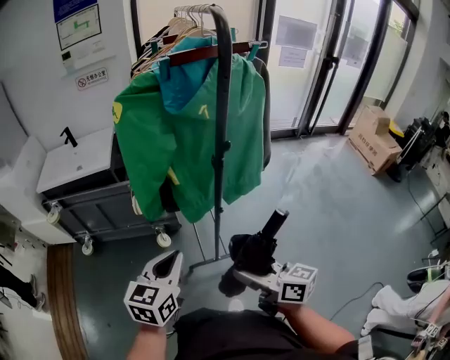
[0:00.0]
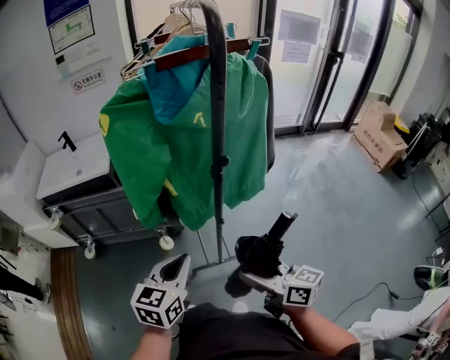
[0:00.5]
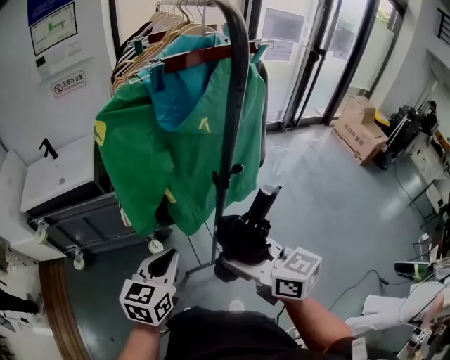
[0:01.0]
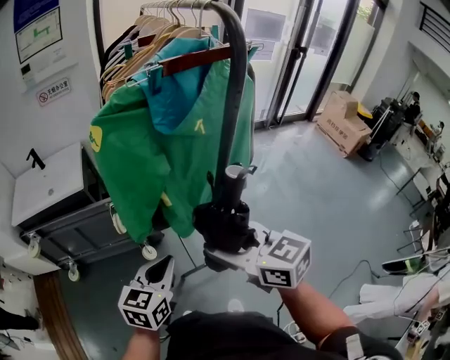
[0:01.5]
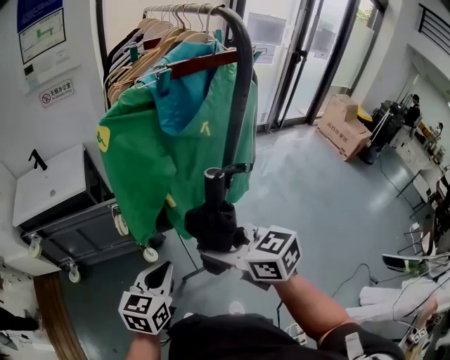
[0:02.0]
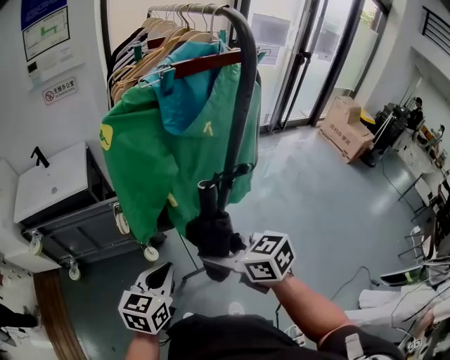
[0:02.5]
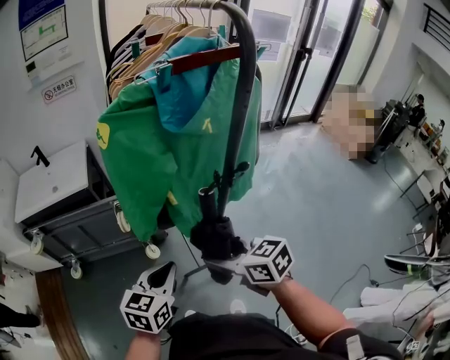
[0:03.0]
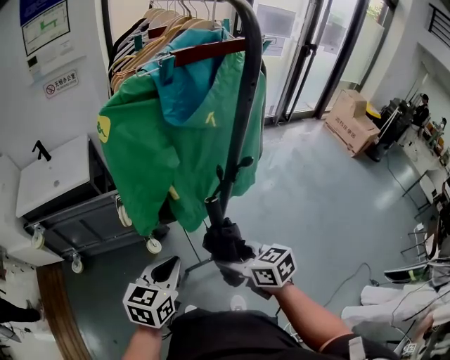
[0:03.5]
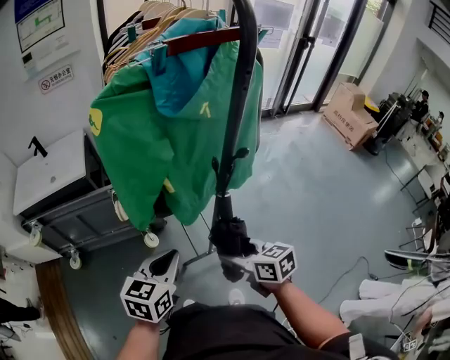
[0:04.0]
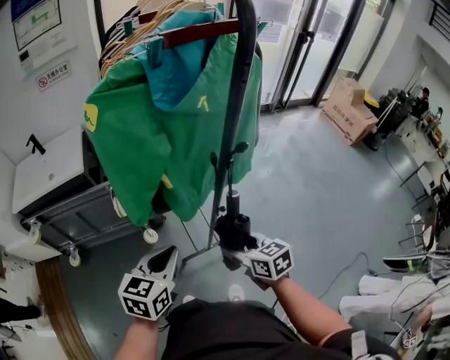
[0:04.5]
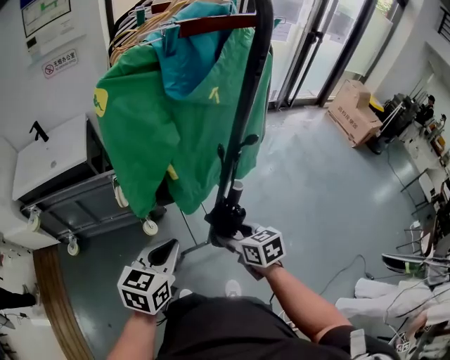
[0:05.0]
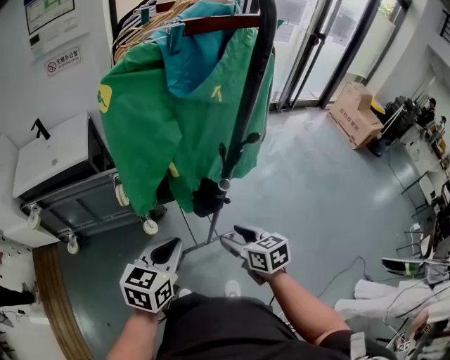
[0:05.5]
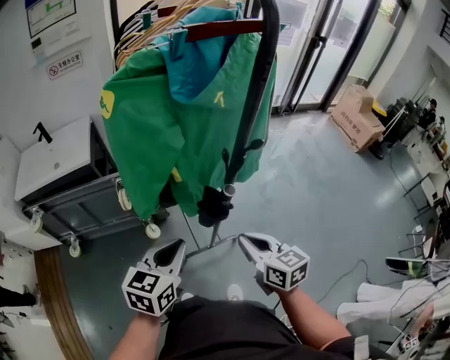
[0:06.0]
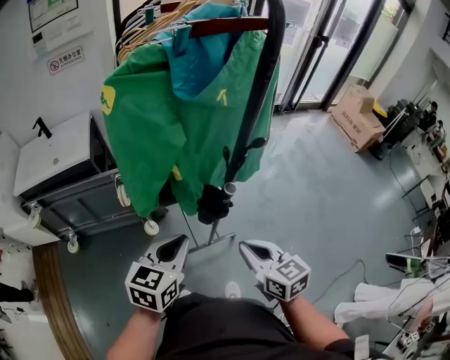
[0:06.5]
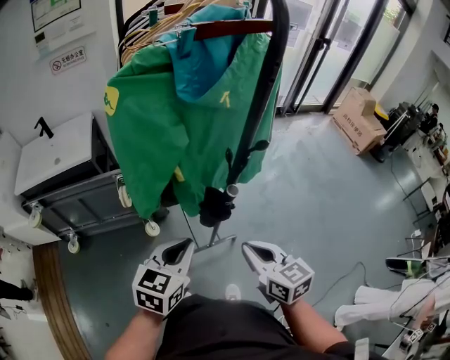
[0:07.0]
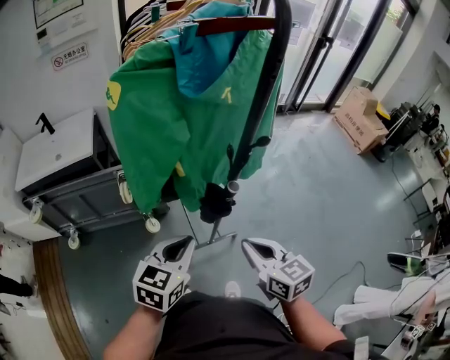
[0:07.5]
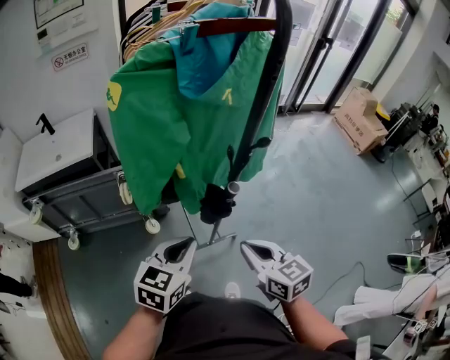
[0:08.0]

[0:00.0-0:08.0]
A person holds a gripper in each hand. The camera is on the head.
0:00.0 to 0:02.0: The left gripper shifts roughly 10 cm forward. Meanwhile the right gripper goes about 20 cm forward, to the left and upward, and changes its angle by about 30 degrees.
0:02.0 to 0:04.0: The right gripper heads downward, covering approximately 15 cm.
0:04.0 to 0:06.0: The right gripper closes its fingers.
0:06.0 to 0:08.0: The grippers stay close to where they were, moving slightly.

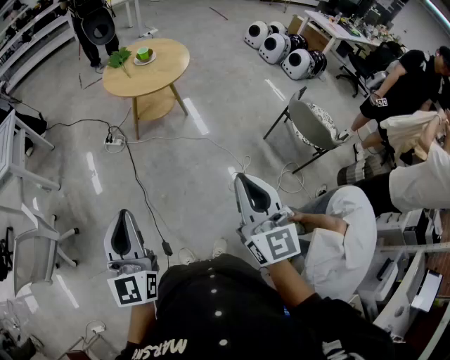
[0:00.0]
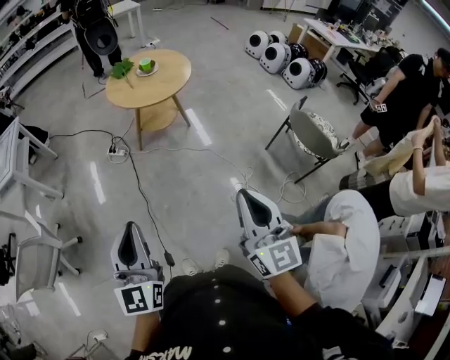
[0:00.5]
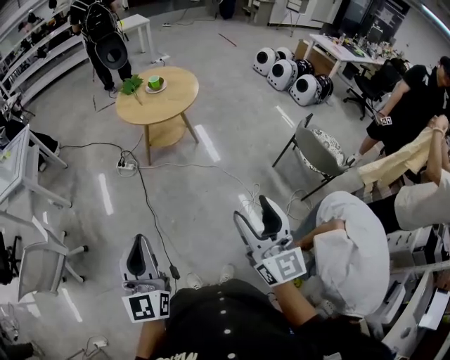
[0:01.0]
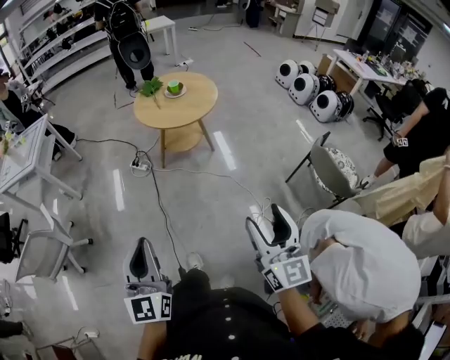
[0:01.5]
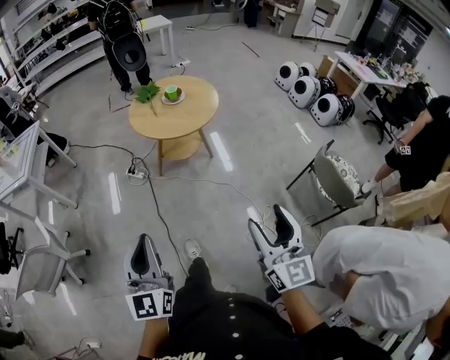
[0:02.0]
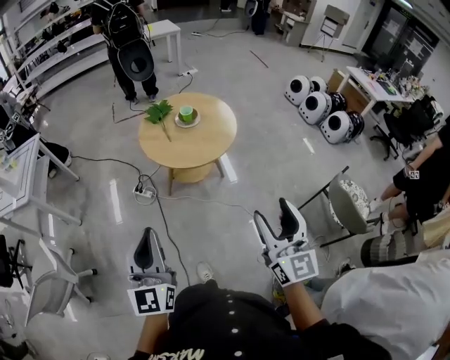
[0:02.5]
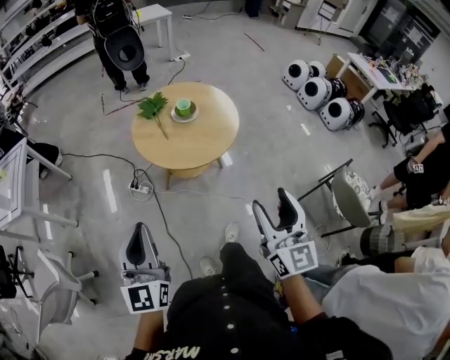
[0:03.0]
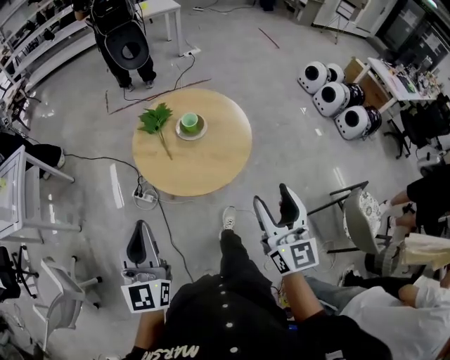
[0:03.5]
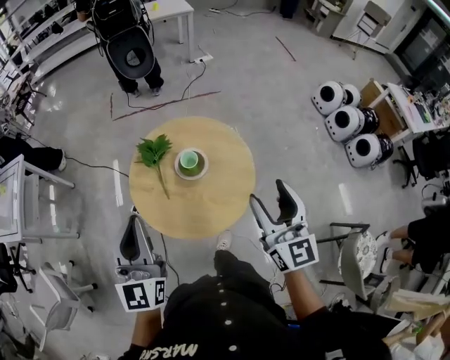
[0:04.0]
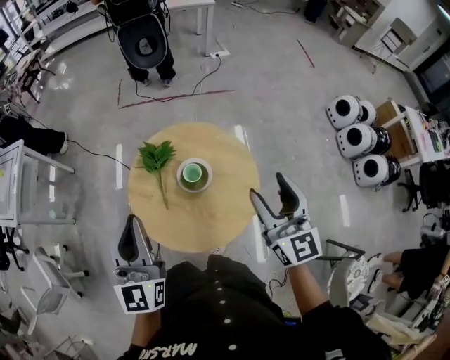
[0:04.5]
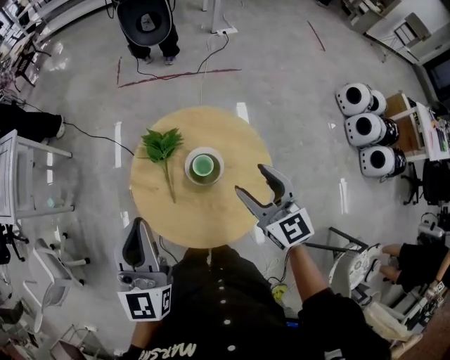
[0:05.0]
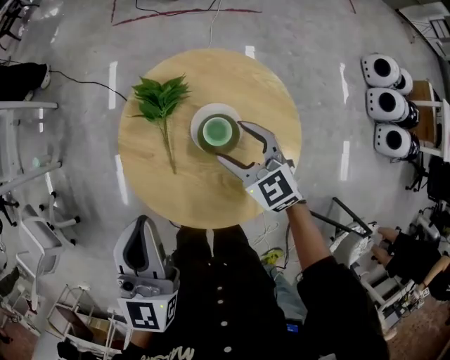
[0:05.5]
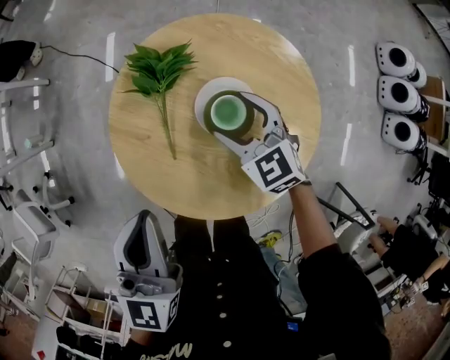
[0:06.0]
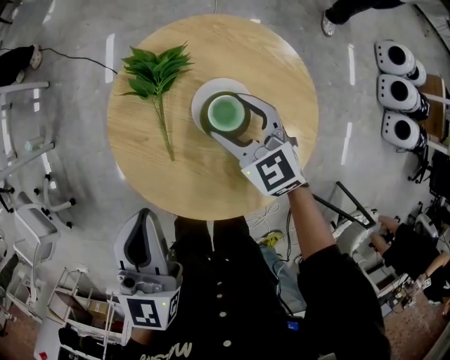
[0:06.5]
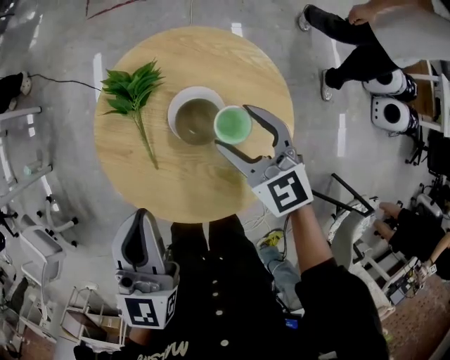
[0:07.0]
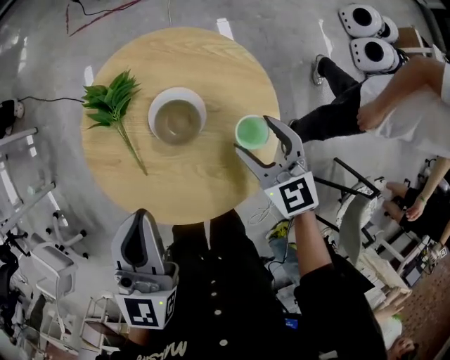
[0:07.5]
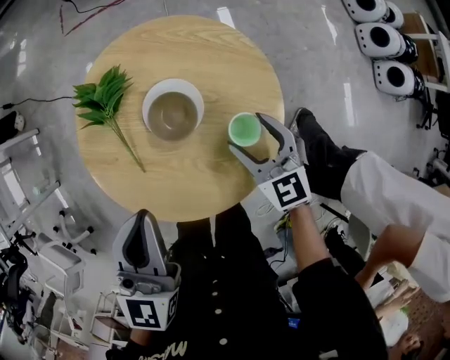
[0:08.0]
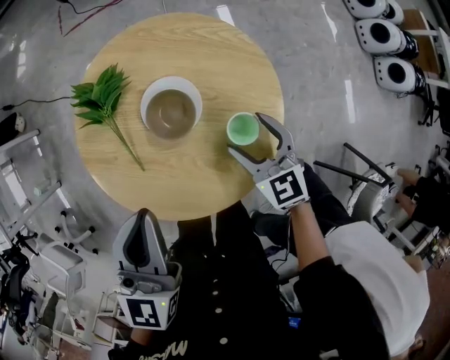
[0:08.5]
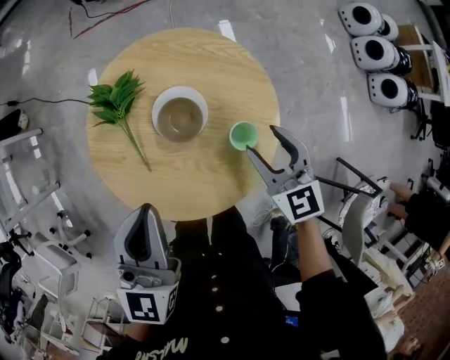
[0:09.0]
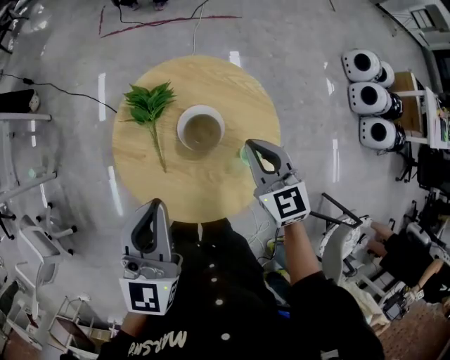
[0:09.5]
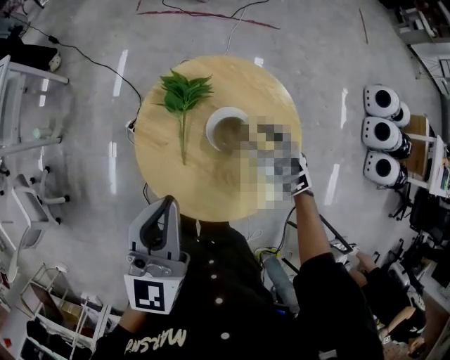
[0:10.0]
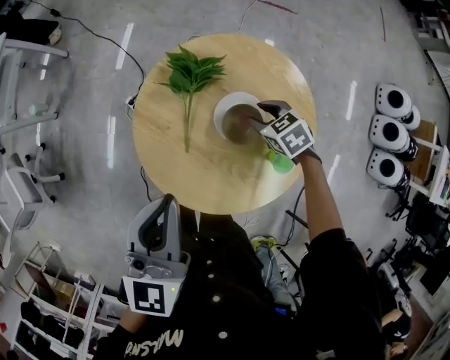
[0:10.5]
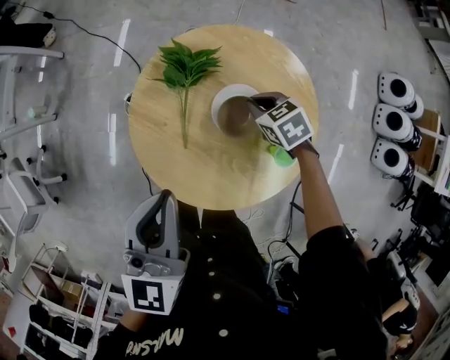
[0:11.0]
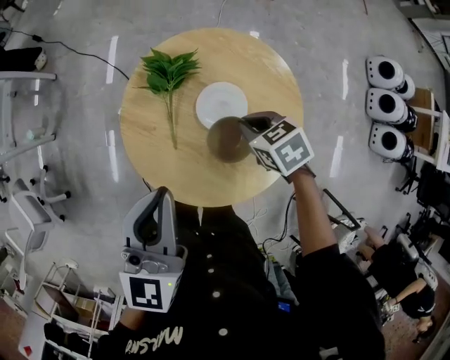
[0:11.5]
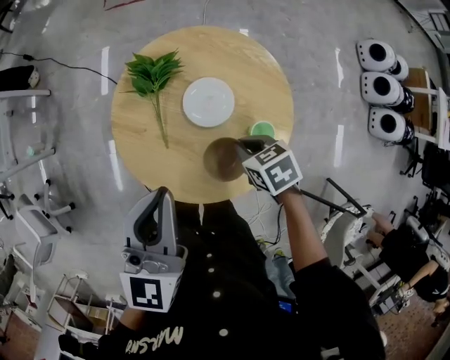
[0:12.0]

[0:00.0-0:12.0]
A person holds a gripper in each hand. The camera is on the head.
0:00.0 to 0:02.0: The left gripper heads forward, covering approximately 10 cm, while the right gripper is displaced forward and to the right by approximately 15 cm, and opens.
0:02.0 to 0:04.0: Both grippers are carried forward, approximately 70 cm.
0:04.0 to 0:06.0: The right gripper moves downward and forward, about 50 cm, and angles its fingers downward, by about 40 degrees. The left gripper travels downward and forward by about 25 cm, and turns by about 20 degrees.
0:06.0 to 0:08.0: The left gripper heads to the right, covering some 10 cm. Meanwhile the right gripper travels to the right and backward by about 15 cm, and turns by some 20 degrees.
0:08.0 to 0:10.0: The left gripper is displaced upward and to the left by some 15 cm. The right gripper moves to the left, forward and upward, some 15 cm, changes its angle by about 20 degrees, and closes its fingers.
0:10.0 to 0:12.0: The right gripper shifts roughly 10 cm backward and downward, swivels approximately 30 degrees, and closes.

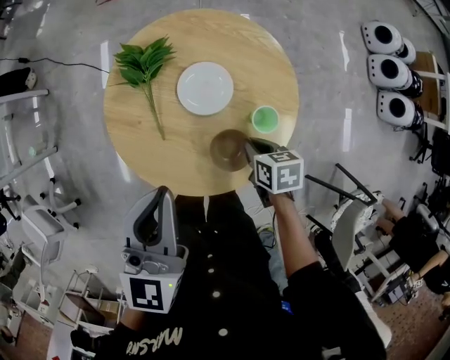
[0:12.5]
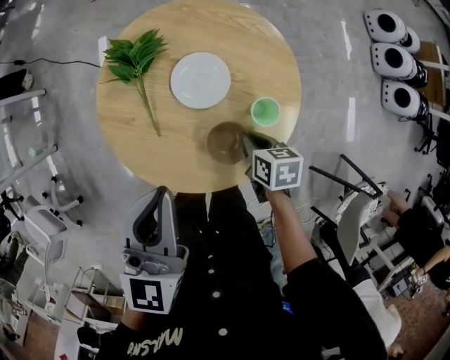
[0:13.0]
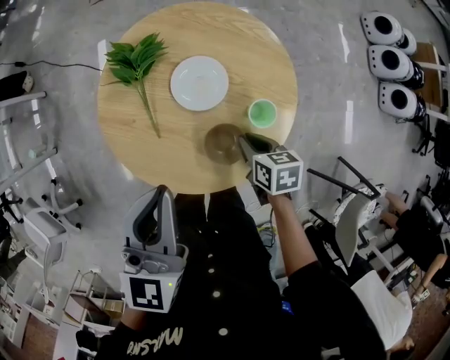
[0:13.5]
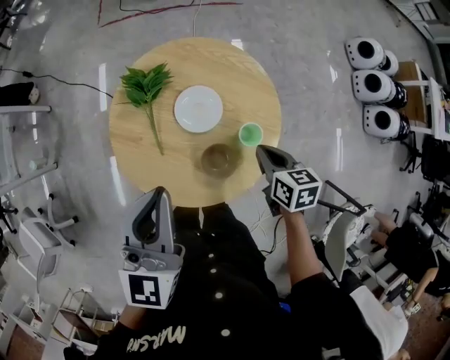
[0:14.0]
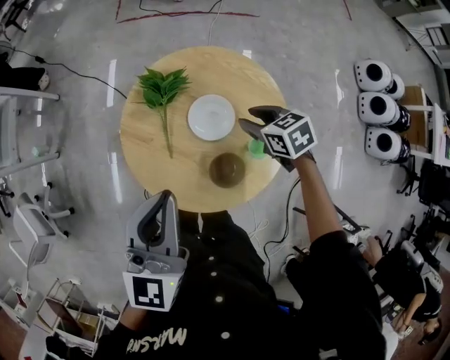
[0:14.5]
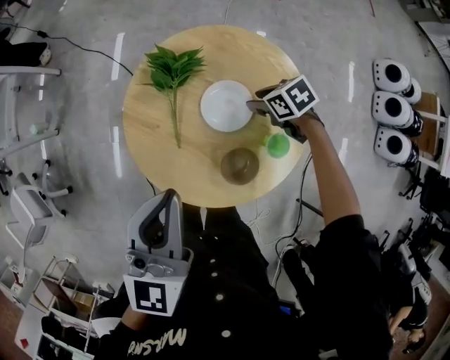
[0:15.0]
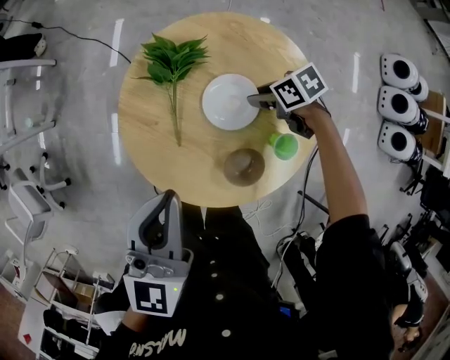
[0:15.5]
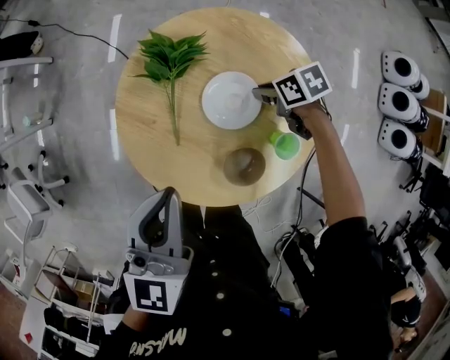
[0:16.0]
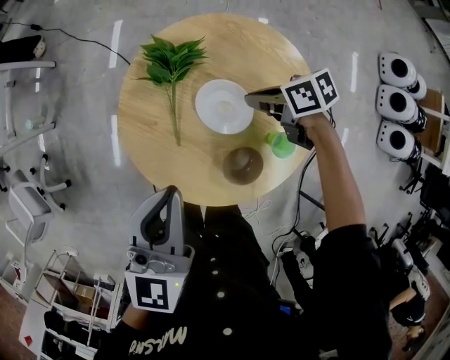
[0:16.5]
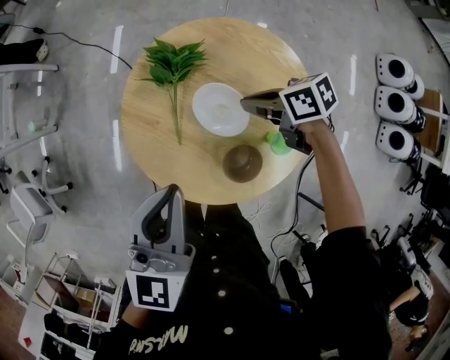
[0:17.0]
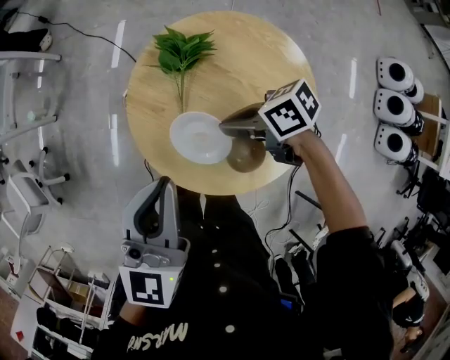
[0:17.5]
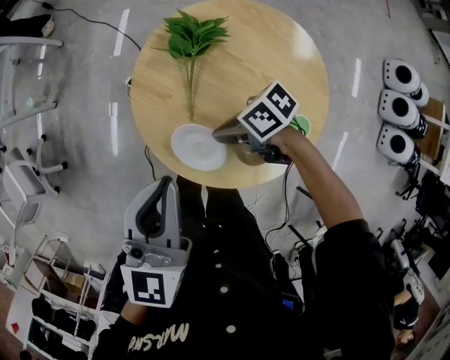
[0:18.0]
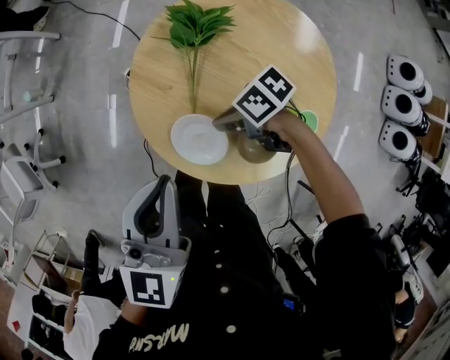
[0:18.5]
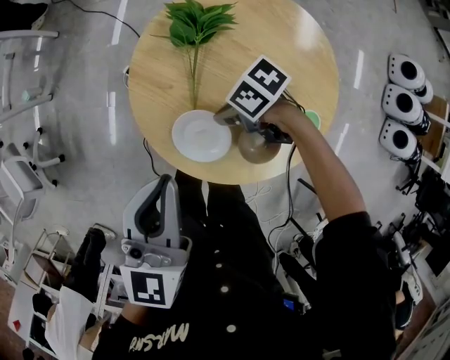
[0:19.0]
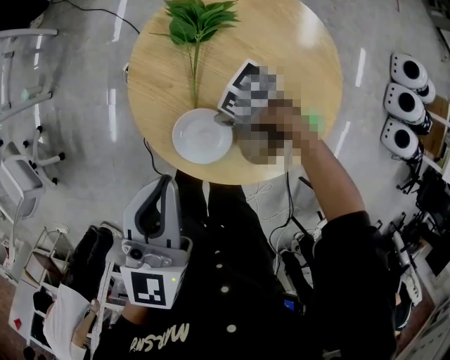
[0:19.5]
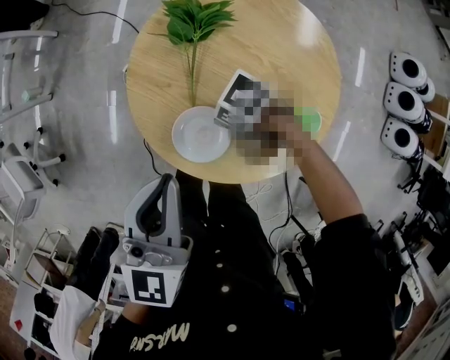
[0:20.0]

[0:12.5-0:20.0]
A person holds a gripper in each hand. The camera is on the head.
0:12.5 to 0:14.5: The left gripper is displaced upward by about 5 cm, while the right gripper goes about 20 cm forward and upward, turns by approximately 30 degrees, and opens its fingers.
0:14.5 to 0:16.5: The right gripper moves downward and forward, some 10 cm, rotates roughly 30 degrees, and closes; the left gripper moves downward, about 10 cm.
0:16.5 to 0:18.0: The right gripper ends up approximately 20 cm from where it was, and turns by about 20 degrees, while the left gripper moves some 5 cm.
0:18.0 to 0:20.0: The right gripper is displaced downward by roughly 5 cm, and changes its angle by roughly 30 degrees.
